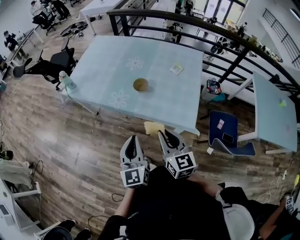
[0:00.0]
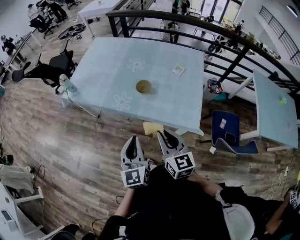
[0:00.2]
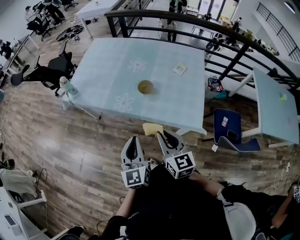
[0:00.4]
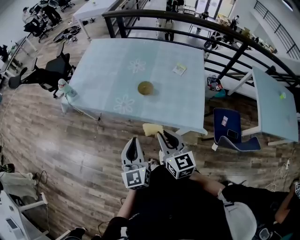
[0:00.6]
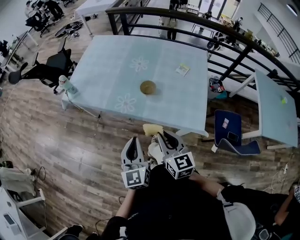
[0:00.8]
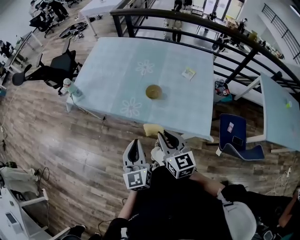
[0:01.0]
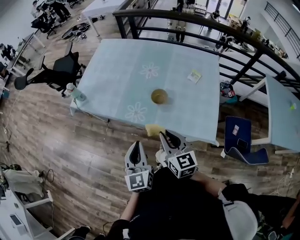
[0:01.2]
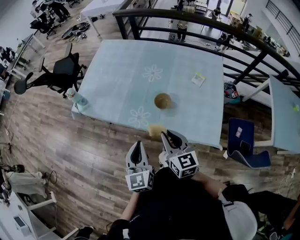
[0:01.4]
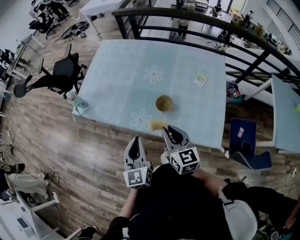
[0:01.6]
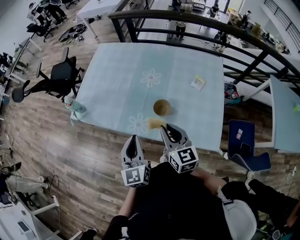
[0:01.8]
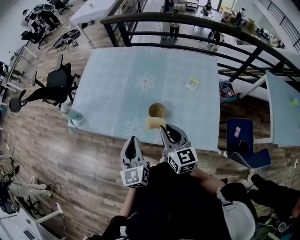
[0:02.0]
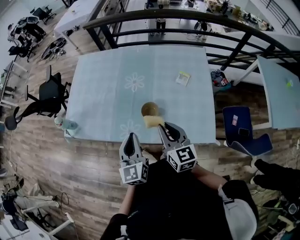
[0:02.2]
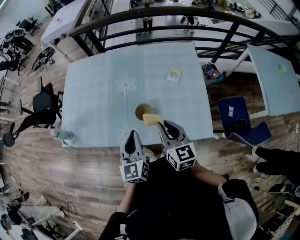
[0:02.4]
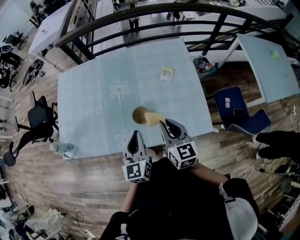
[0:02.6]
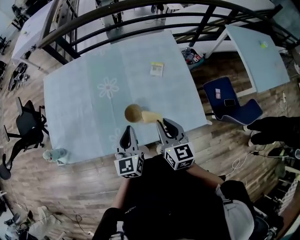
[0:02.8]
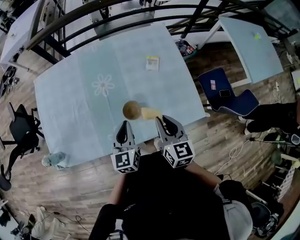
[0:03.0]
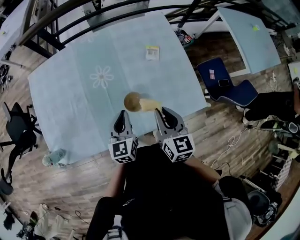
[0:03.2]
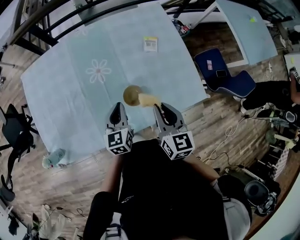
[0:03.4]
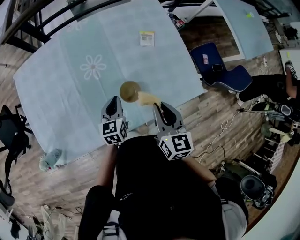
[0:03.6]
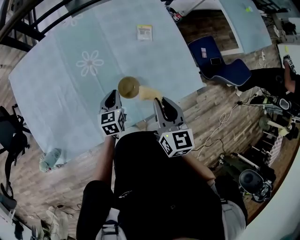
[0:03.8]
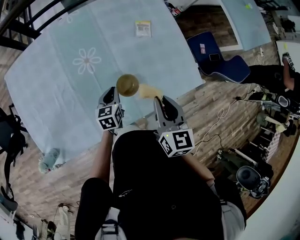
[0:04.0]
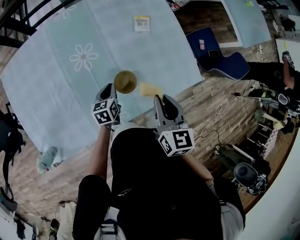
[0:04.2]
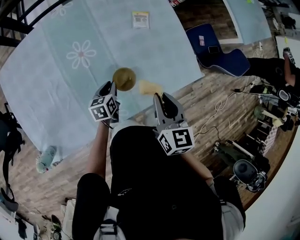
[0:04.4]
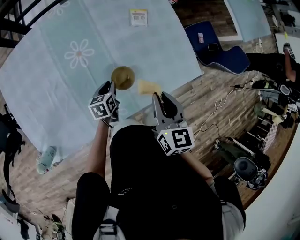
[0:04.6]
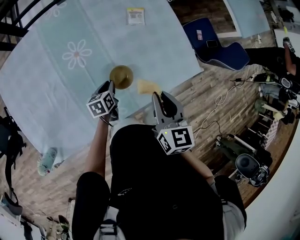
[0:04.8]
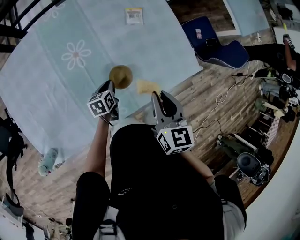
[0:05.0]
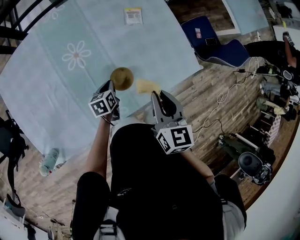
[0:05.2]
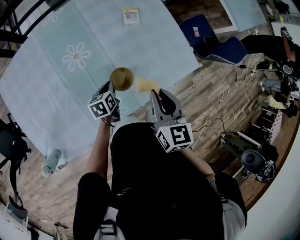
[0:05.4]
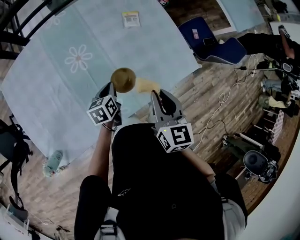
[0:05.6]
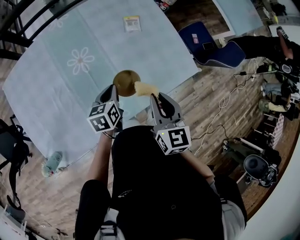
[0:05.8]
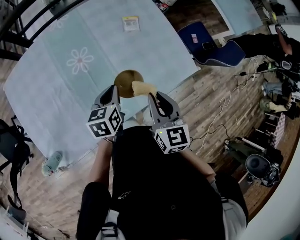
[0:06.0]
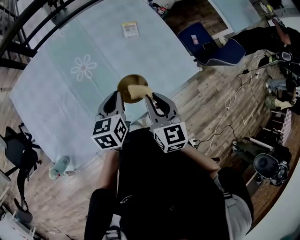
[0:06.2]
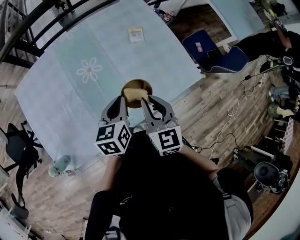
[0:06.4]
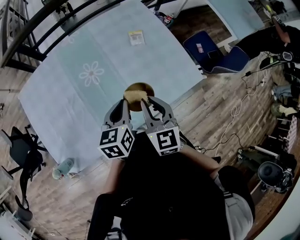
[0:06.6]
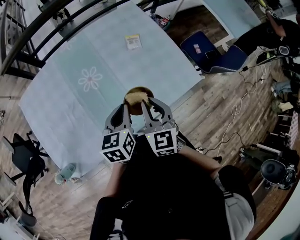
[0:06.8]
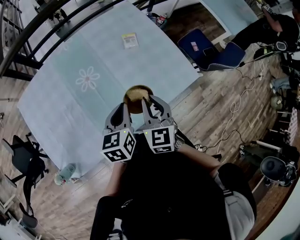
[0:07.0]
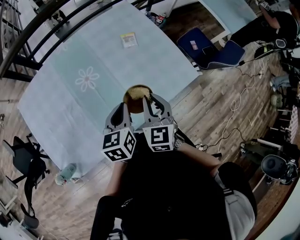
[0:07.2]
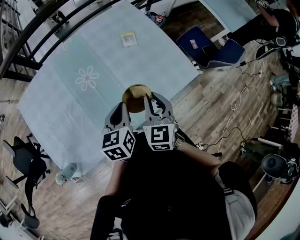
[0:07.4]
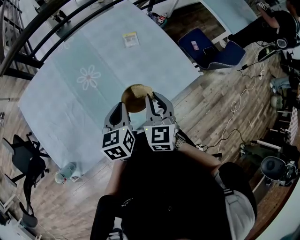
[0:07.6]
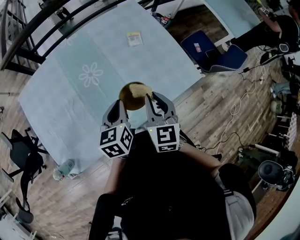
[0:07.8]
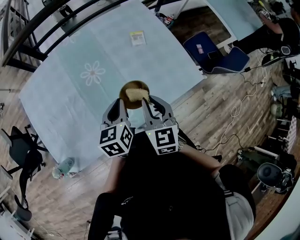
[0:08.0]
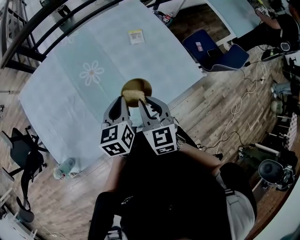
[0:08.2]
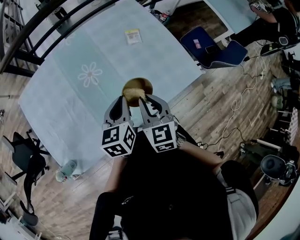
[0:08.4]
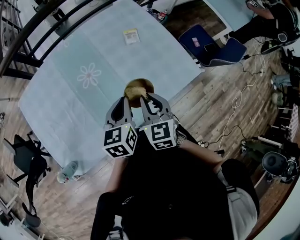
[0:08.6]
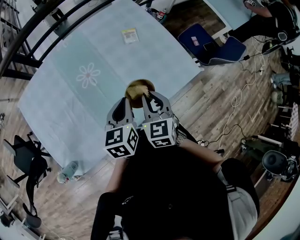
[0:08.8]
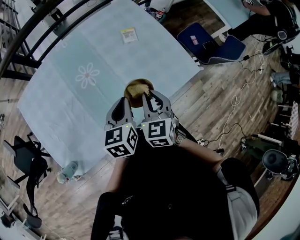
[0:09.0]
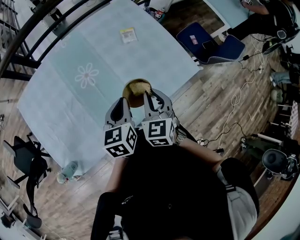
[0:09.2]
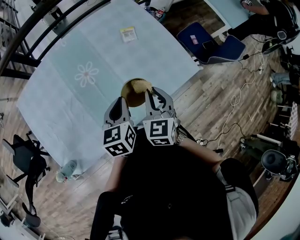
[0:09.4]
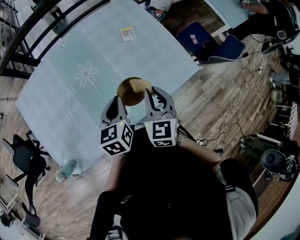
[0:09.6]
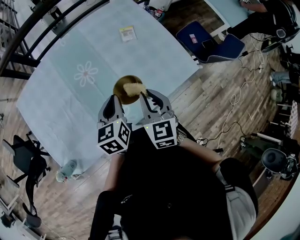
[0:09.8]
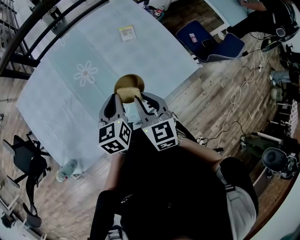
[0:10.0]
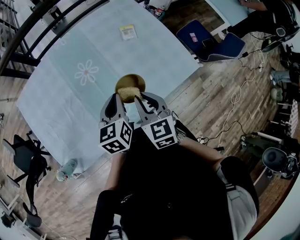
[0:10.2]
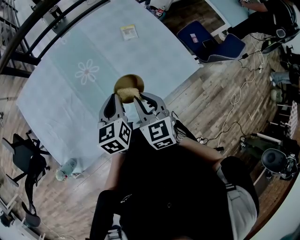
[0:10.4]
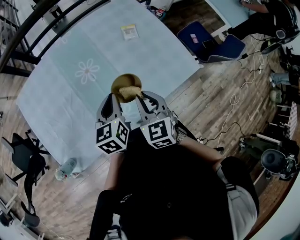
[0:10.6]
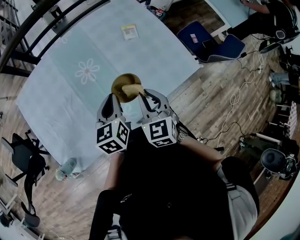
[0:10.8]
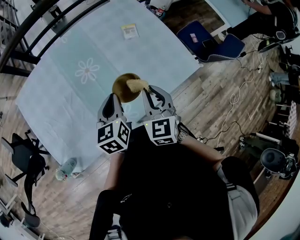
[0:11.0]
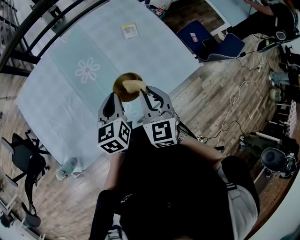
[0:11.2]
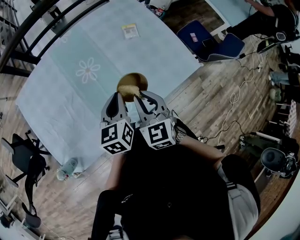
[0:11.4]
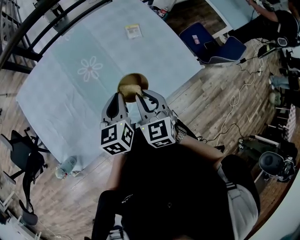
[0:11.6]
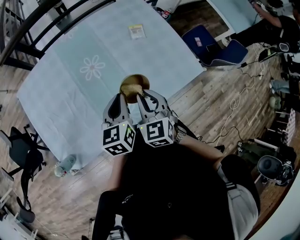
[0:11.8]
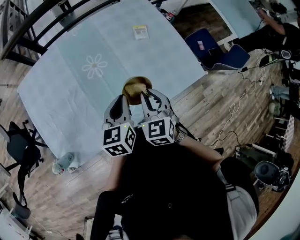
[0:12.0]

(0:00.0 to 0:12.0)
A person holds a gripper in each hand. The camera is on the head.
0:00.0 - 0:01.6: The two grippers go some 20 cm forward.
0:01.6 - 0:03.0: The right gripper ends up about 10 cm from where it was, and swivels roughly 40 degrees. The left gripper ends up some 20 cm from where it was, and turns by about 40 degrees.
0:03.0 - 0:04.4: The left gripper goes about 20 cm downward, and swivels roughly 40 degrees.
0:04.4 - 0:06.0: The left gripper moves upward, roughly 15 cm.
0:06.0 - 0:07.6: The left gripper is displaced upward by roughly 5 cm.
0:07.6 - 0:10.4: There are only small adjustments of the grippers.
0:10.4 - 0:12.0: The grippers make only small movements.

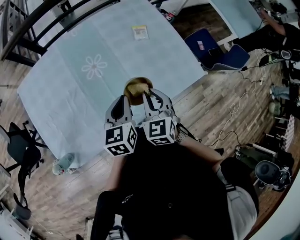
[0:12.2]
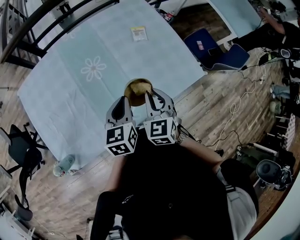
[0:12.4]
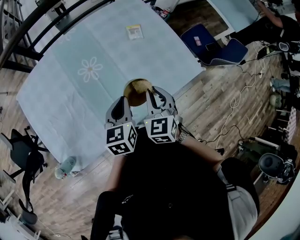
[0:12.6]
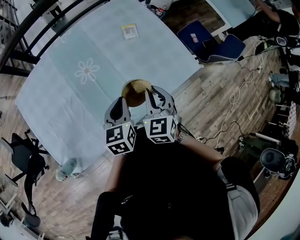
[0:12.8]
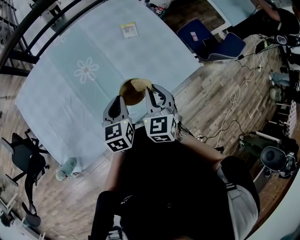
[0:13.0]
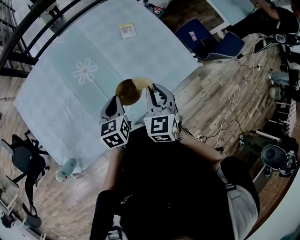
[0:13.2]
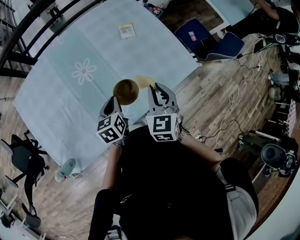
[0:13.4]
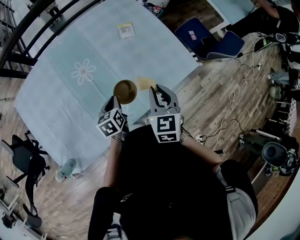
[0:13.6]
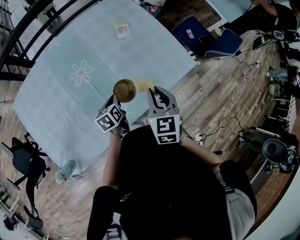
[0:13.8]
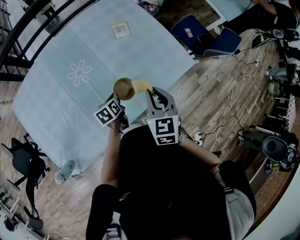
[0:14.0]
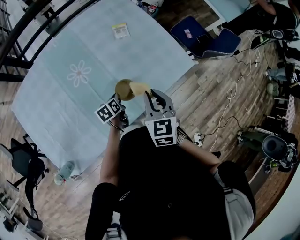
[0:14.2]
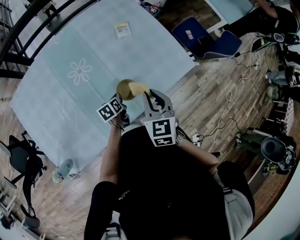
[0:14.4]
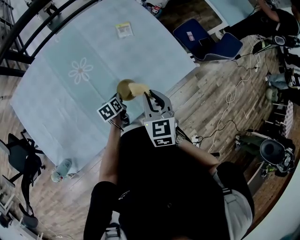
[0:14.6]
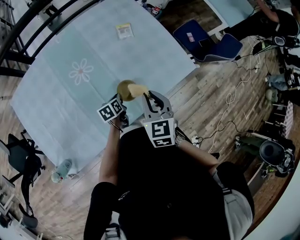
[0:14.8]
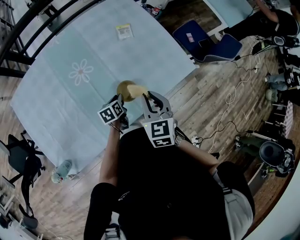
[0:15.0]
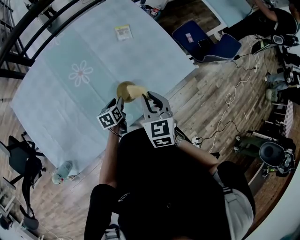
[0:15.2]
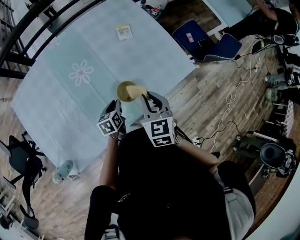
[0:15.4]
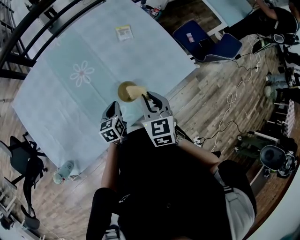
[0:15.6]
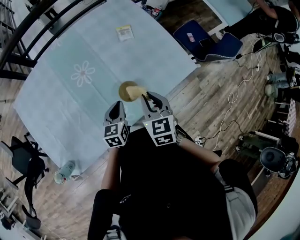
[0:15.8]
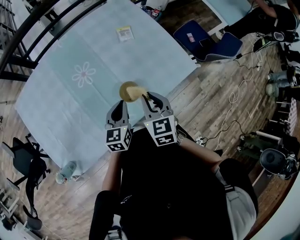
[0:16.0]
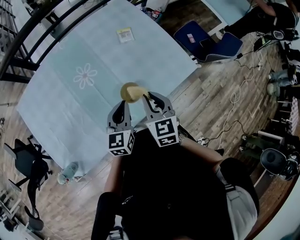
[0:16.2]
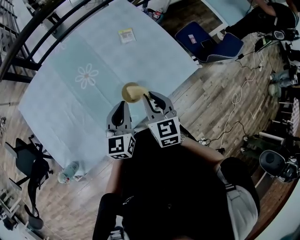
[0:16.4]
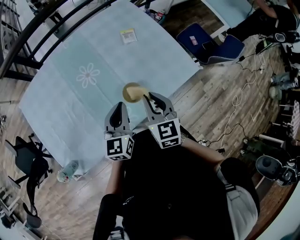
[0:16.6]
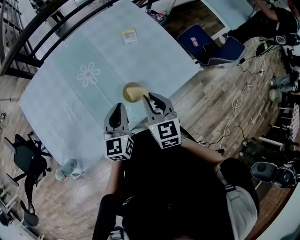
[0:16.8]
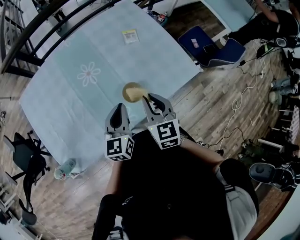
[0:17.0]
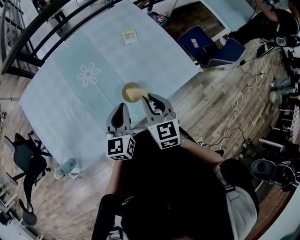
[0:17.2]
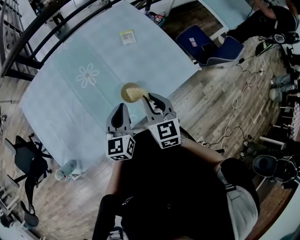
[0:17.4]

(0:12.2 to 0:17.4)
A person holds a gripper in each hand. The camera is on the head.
0:12.2 - 0:14.0: The right gripper moves to the right, some 5 cm, while the left gripper moves downward, some 20 cm, and turns by about 30 degrees.
0:14.0 - 0:15.6: The left gripper moves roughly 5 cm, and opens, then closes again.
0:15.6 - 0:17.4: The left gripper goes some 15 cm upward, and turns by about 30 degrees.

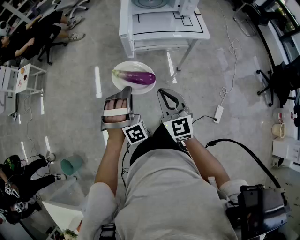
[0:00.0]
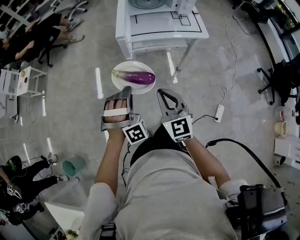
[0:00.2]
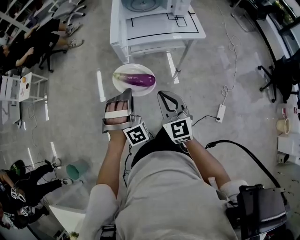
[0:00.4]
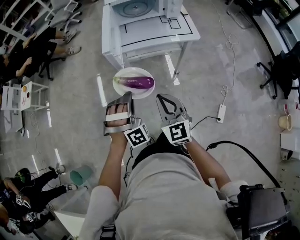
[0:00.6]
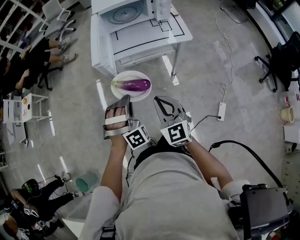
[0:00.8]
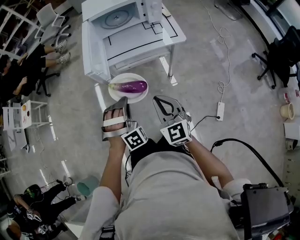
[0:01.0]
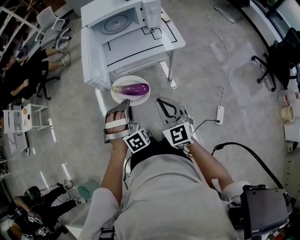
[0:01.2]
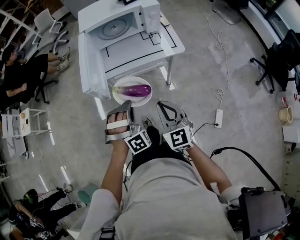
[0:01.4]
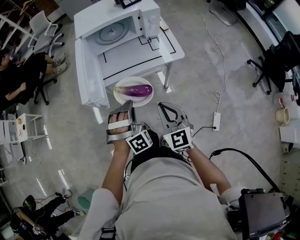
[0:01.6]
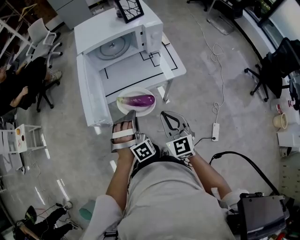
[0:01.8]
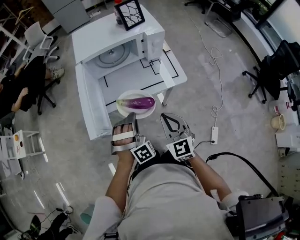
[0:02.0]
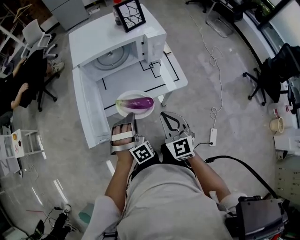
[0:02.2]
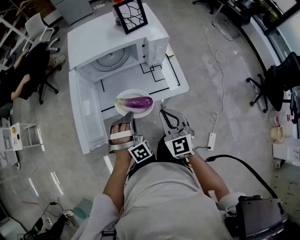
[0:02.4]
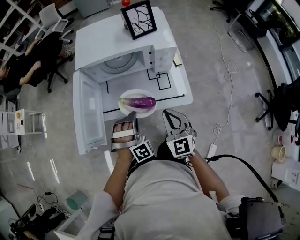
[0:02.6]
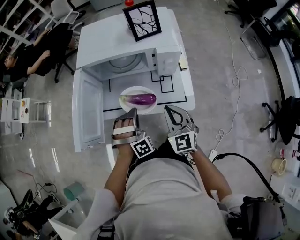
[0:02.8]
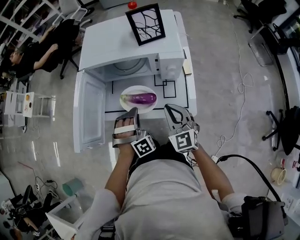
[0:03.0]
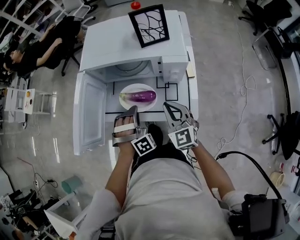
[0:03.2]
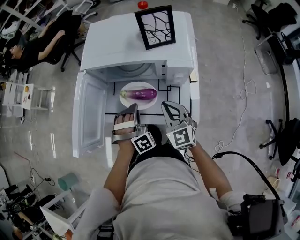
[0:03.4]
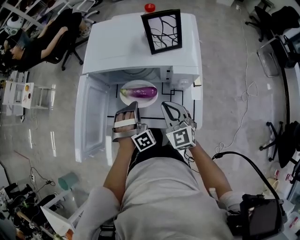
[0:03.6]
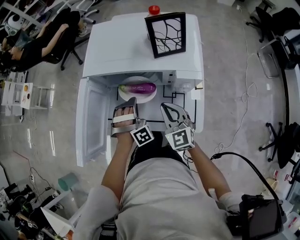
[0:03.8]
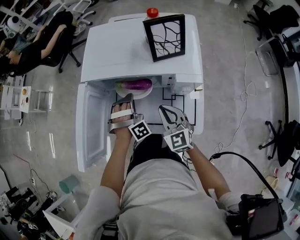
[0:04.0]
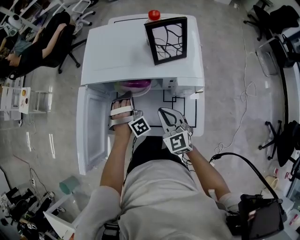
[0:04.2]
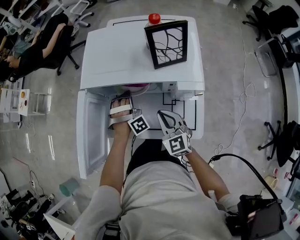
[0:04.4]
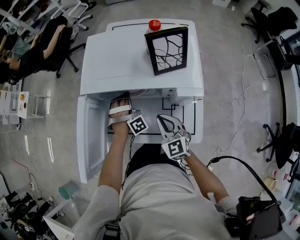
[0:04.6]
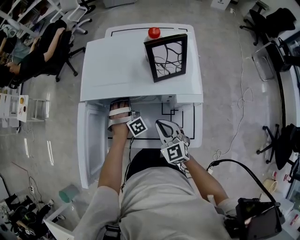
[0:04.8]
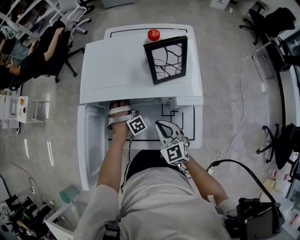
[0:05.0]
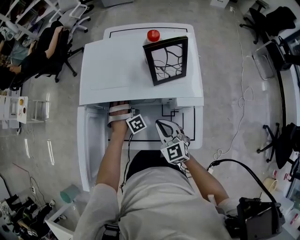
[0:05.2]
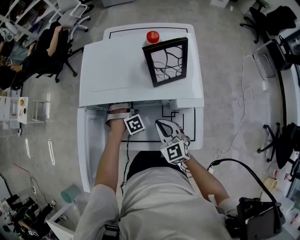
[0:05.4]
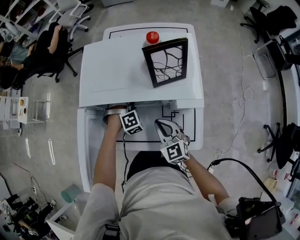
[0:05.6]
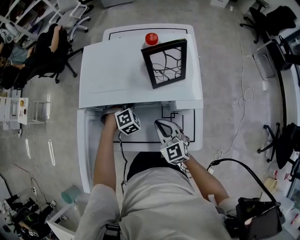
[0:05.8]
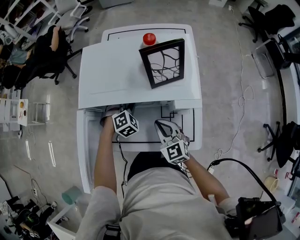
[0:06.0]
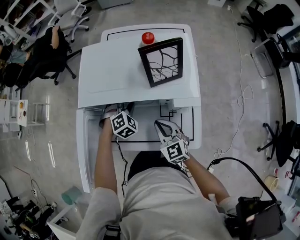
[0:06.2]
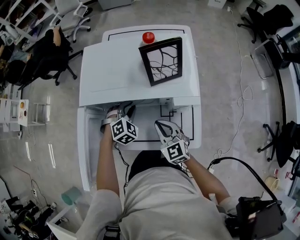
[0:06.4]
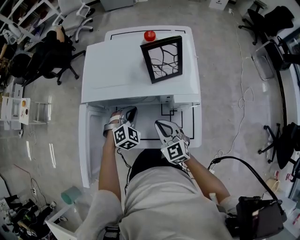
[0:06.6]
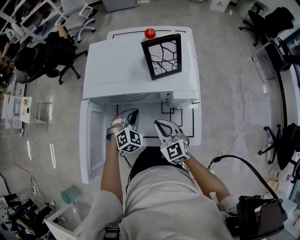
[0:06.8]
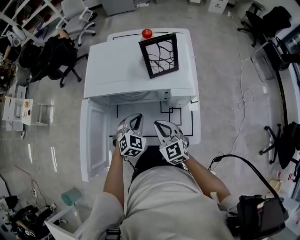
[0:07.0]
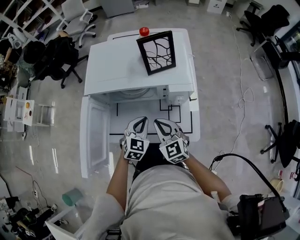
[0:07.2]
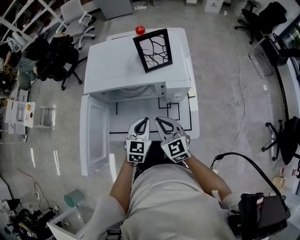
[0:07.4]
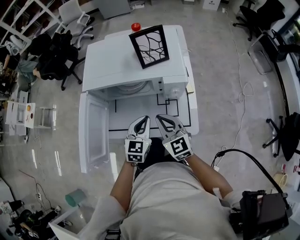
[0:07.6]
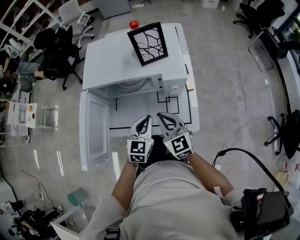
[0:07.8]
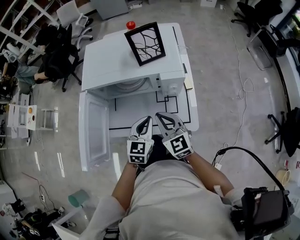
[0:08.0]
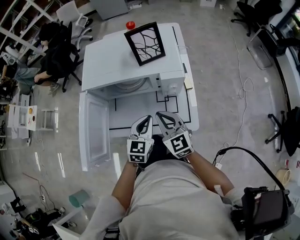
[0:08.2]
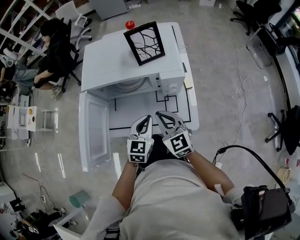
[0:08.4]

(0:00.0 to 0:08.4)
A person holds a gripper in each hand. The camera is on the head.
0:00.0 - 0:01.4: The right gripper shifts by some 15 cm.
0:01.4 - 0:02.8: The right gripper moves about 30 cm.
0:02.8 - 0:04.2: The right gripper ends up approximately 15 cm from where it was.
0:07.0 - 0:08.4: The right gripper moves roughly 5 cm.
